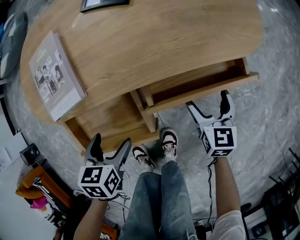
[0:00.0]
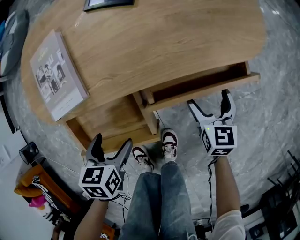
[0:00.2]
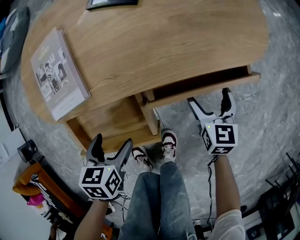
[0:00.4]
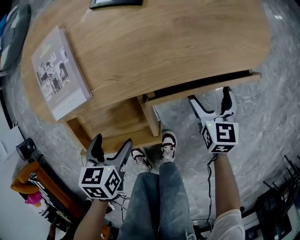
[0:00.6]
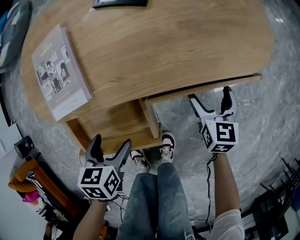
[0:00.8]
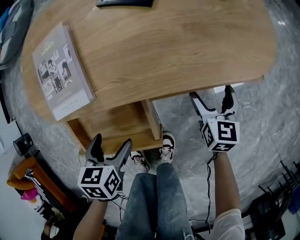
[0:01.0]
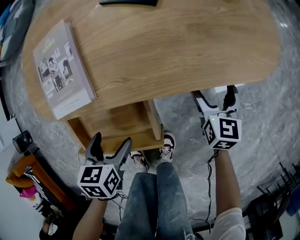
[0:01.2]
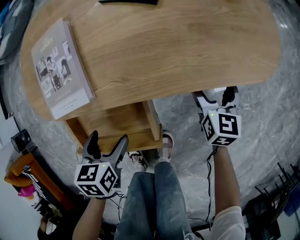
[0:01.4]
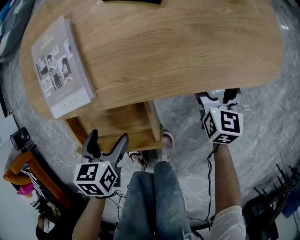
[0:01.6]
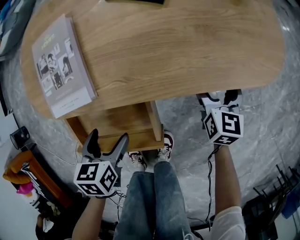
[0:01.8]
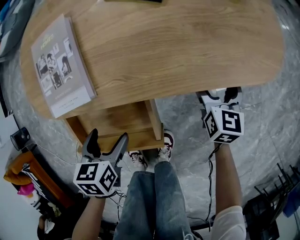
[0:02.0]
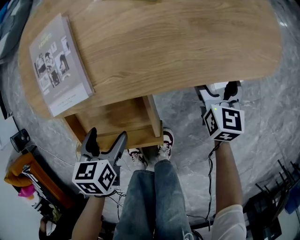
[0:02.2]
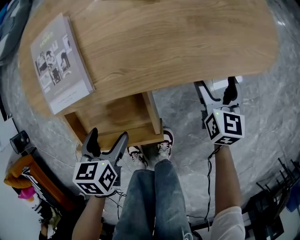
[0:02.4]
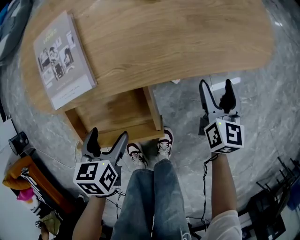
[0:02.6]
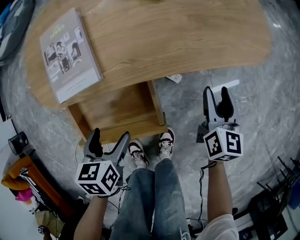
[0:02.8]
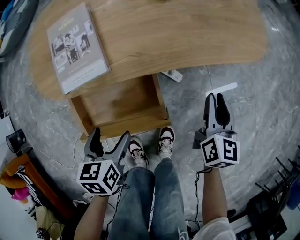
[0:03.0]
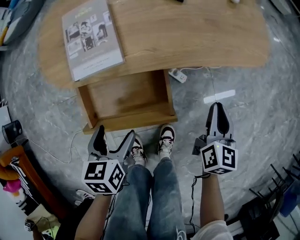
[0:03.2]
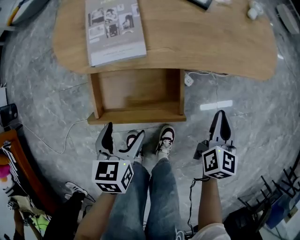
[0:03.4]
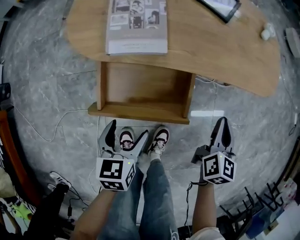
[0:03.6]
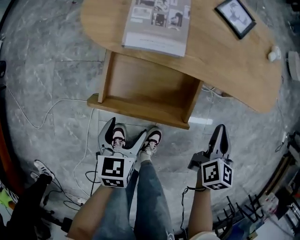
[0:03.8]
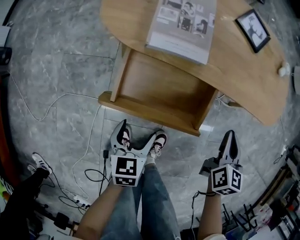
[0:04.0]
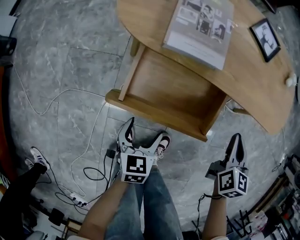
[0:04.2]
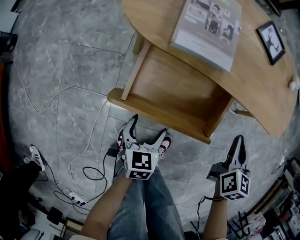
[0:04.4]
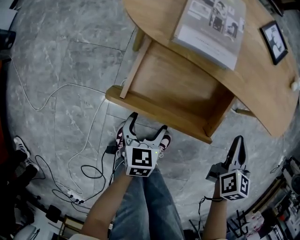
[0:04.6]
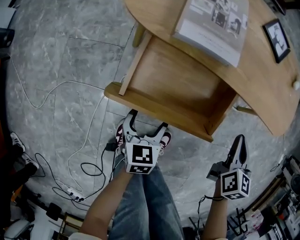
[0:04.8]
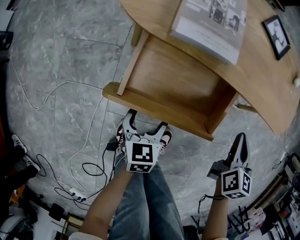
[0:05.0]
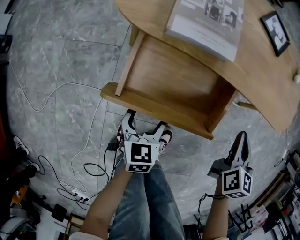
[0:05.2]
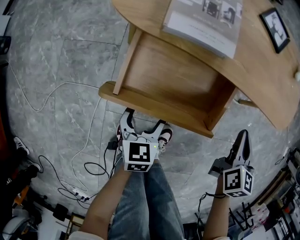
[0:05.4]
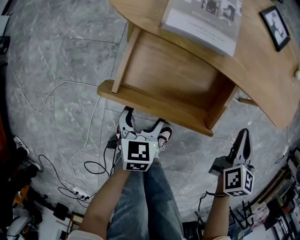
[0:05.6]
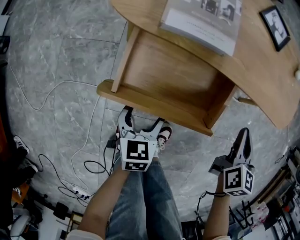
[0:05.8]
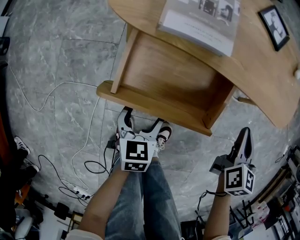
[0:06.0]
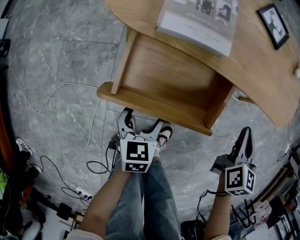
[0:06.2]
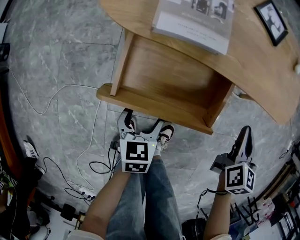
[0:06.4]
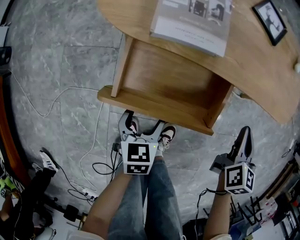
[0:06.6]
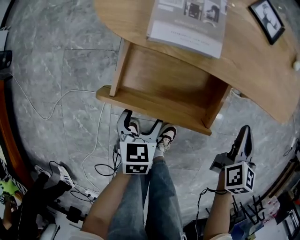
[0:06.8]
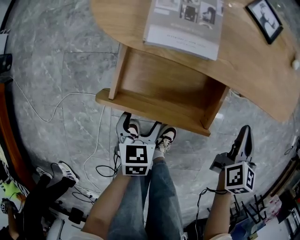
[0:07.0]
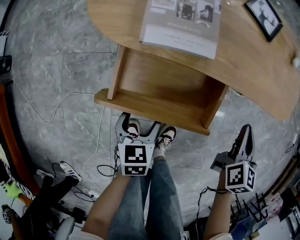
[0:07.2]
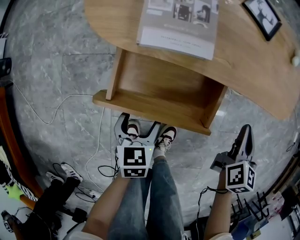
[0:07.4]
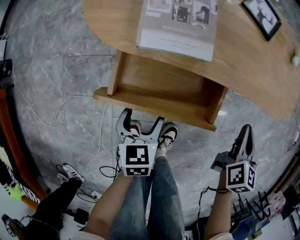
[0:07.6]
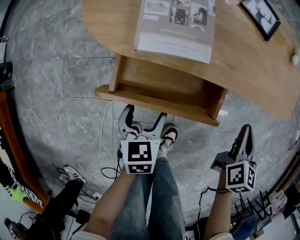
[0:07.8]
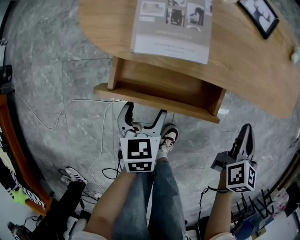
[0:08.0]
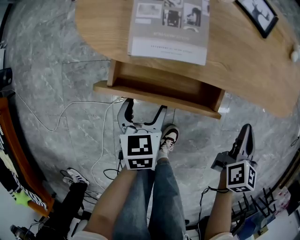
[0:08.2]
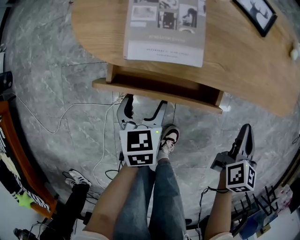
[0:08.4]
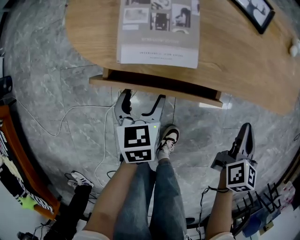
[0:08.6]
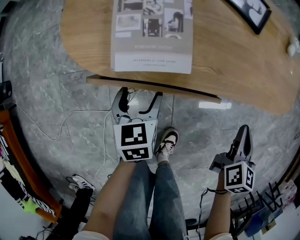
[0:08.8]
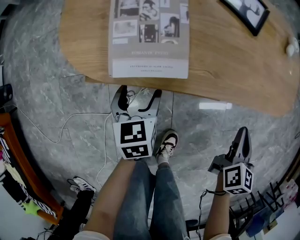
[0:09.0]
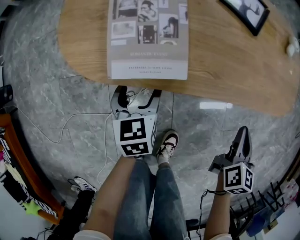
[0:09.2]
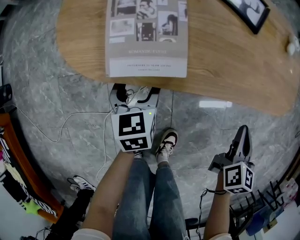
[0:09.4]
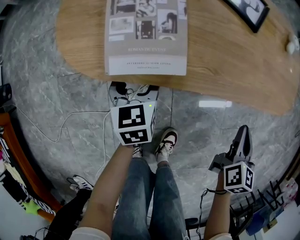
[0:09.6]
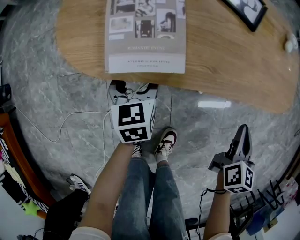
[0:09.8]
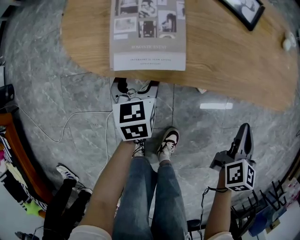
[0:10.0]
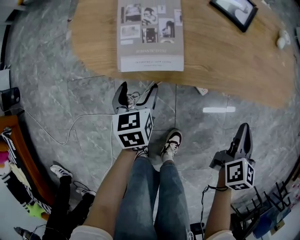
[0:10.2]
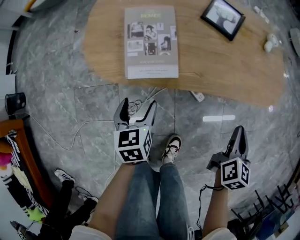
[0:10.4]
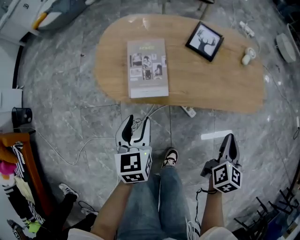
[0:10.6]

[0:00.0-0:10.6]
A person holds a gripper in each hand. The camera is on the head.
0:00.0 to 0:01.6: The right gripper is displaced forward by some 10 cm.
0:01.6 to 0:03.0: The left gripper is displaced backward by some 5 cm; the right gripper moves backward and upward, approximately 15 cm, and closes its fingers.
0:03.0 to 0:04.6: The right gripper heads to the left, covering approximately 10 cm, and rotates roughly 30 degrees. The left gripper heads downward and backward, covering some 15 cm.
0:04.6 to 0:06.0: The grippers stay close to where they were, moving slightly.
0:06.0 to 0:07.6: The left gripper shifts by some 5 cm.
0:07.6 to 0:09.0: The left gripper goes about 15 cm forward.
0:09.0 to 0:10.6: The grippers both shift upward by roughly 20 cm. The left gripper closes.

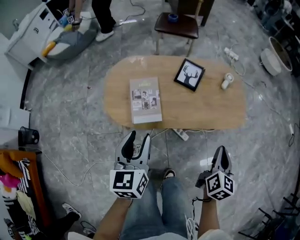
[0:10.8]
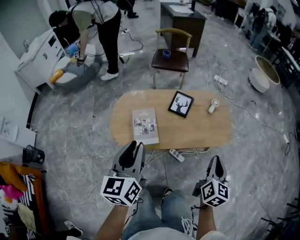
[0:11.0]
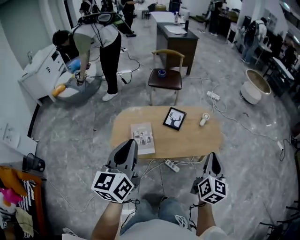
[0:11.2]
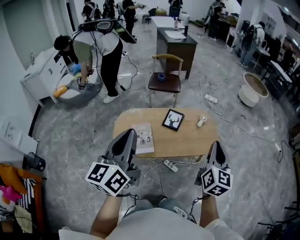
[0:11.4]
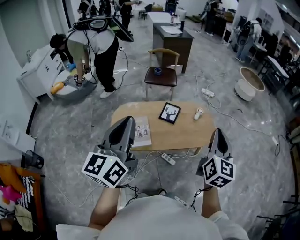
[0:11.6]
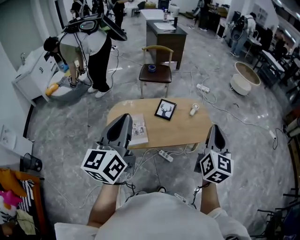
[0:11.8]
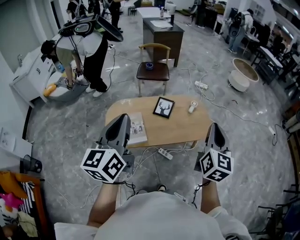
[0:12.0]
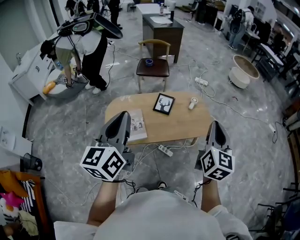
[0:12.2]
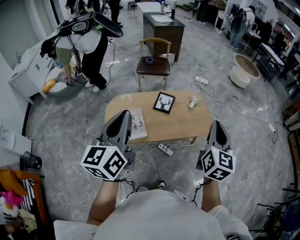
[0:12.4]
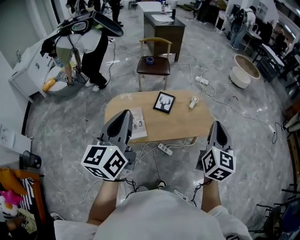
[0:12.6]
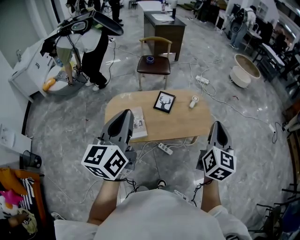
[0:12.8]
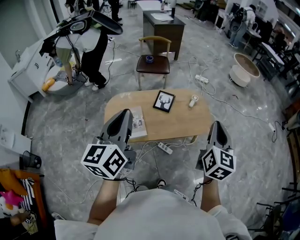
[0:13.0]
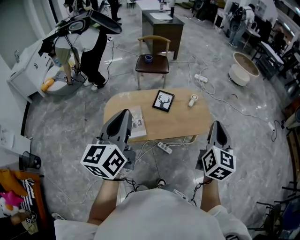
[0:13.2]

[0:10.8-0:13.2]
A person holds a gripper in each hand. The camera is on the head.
0:10.8 to 0:12.0: Both grippers move upward, about 35 cm. The left gripper swivels roughly 30 degrees, and closes; the right gripper changes its angle by some 20 degrees.
0:12.0 to 0:13.2: The grippers move only a little.

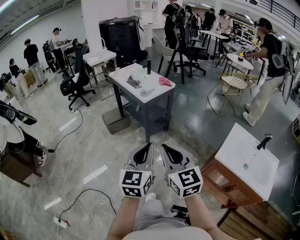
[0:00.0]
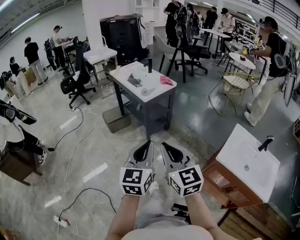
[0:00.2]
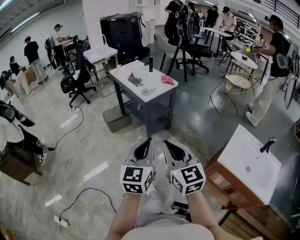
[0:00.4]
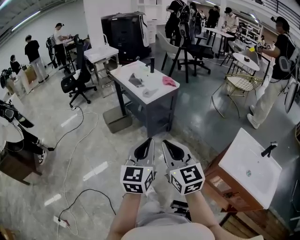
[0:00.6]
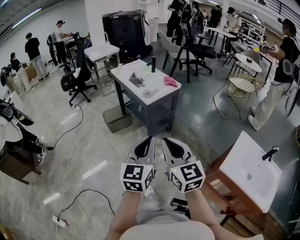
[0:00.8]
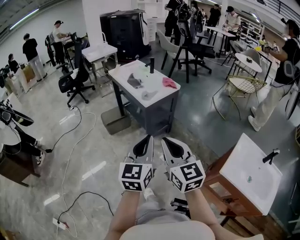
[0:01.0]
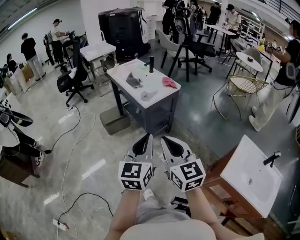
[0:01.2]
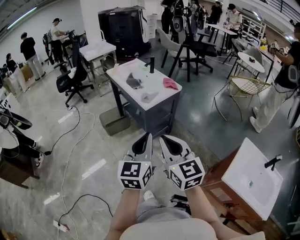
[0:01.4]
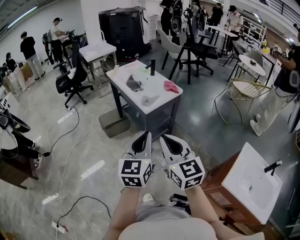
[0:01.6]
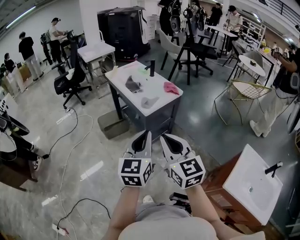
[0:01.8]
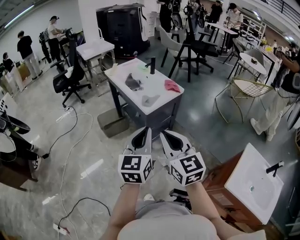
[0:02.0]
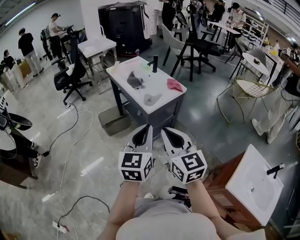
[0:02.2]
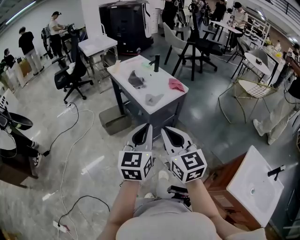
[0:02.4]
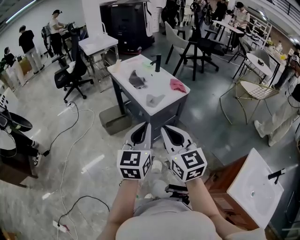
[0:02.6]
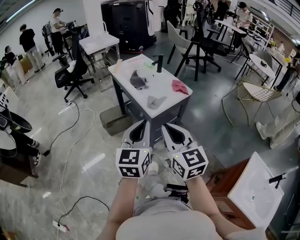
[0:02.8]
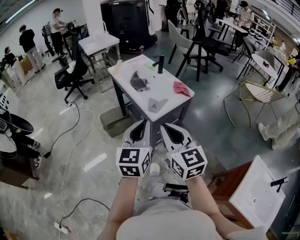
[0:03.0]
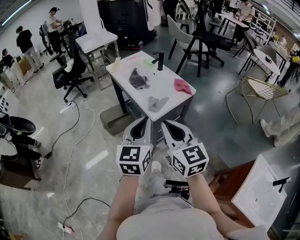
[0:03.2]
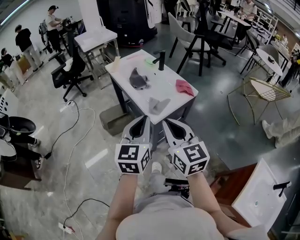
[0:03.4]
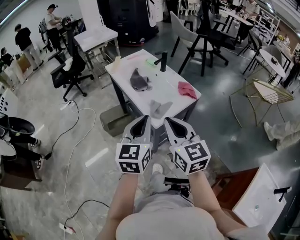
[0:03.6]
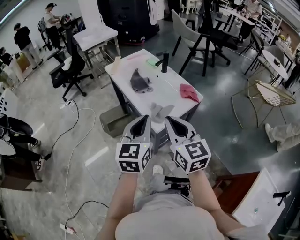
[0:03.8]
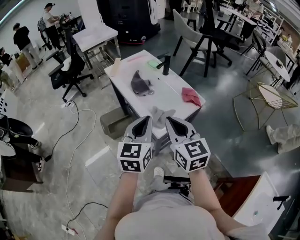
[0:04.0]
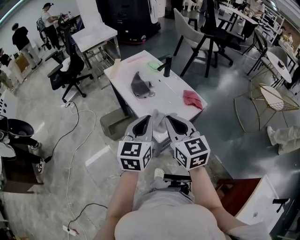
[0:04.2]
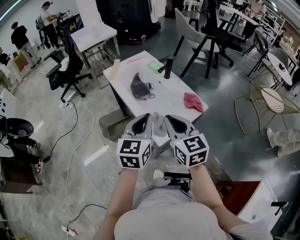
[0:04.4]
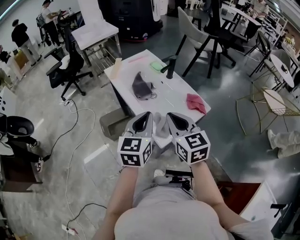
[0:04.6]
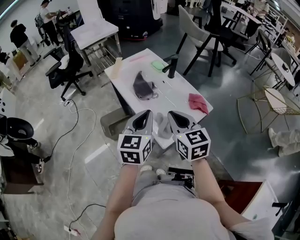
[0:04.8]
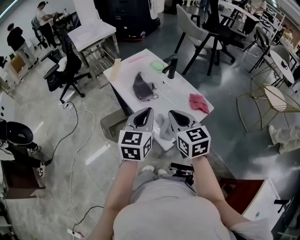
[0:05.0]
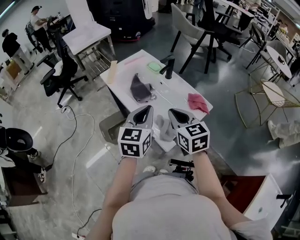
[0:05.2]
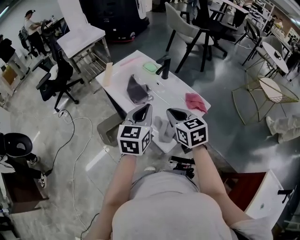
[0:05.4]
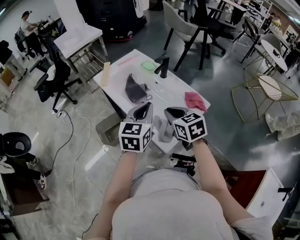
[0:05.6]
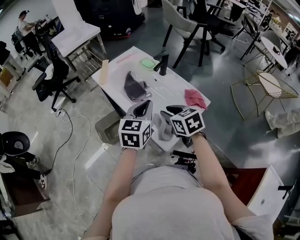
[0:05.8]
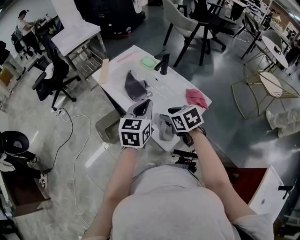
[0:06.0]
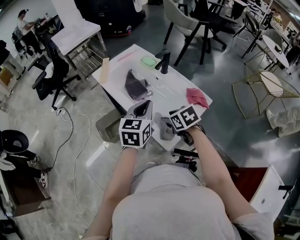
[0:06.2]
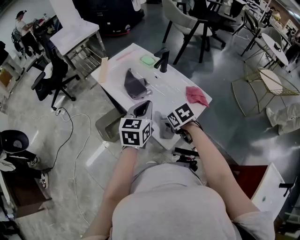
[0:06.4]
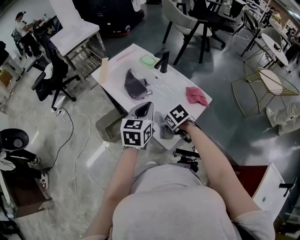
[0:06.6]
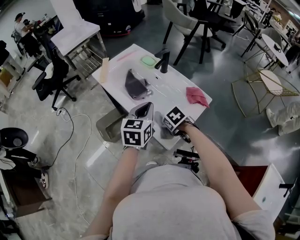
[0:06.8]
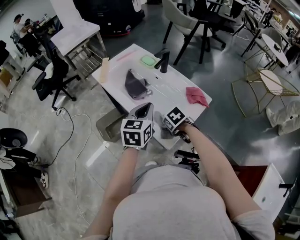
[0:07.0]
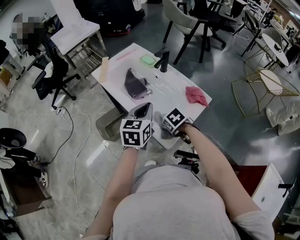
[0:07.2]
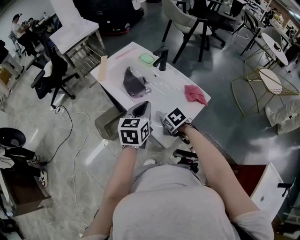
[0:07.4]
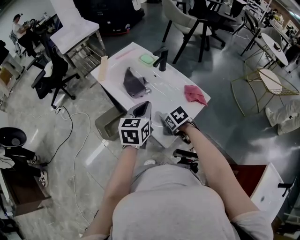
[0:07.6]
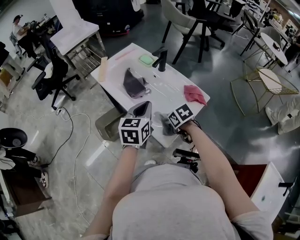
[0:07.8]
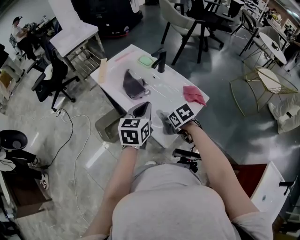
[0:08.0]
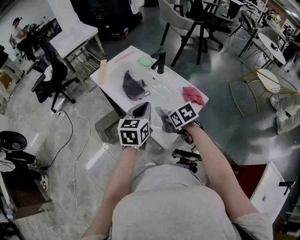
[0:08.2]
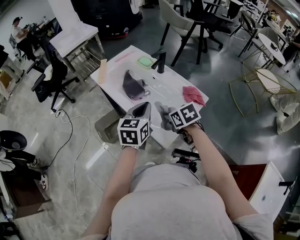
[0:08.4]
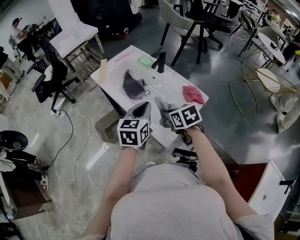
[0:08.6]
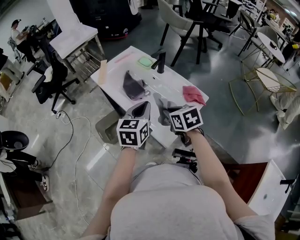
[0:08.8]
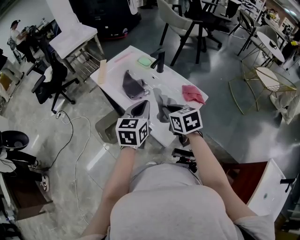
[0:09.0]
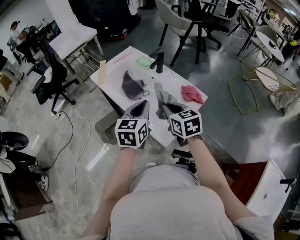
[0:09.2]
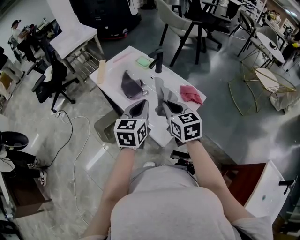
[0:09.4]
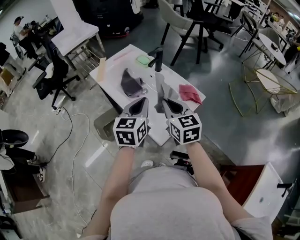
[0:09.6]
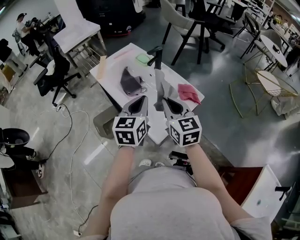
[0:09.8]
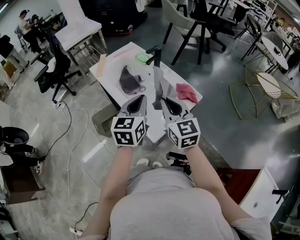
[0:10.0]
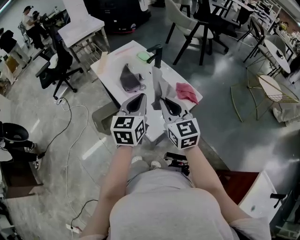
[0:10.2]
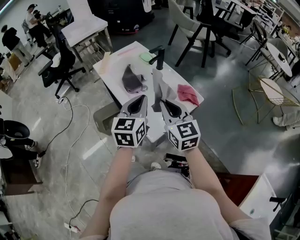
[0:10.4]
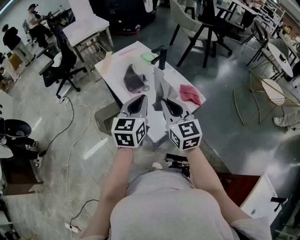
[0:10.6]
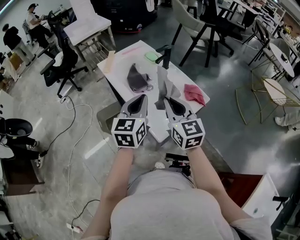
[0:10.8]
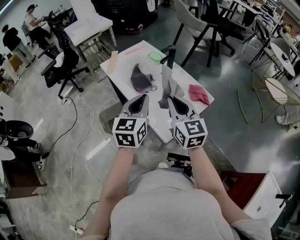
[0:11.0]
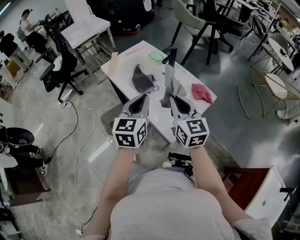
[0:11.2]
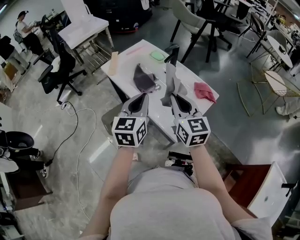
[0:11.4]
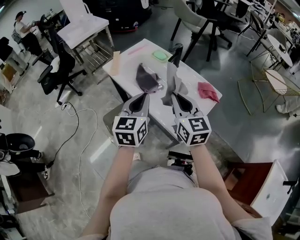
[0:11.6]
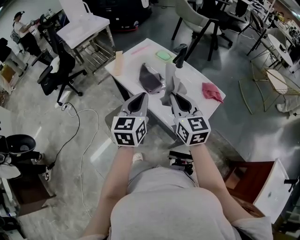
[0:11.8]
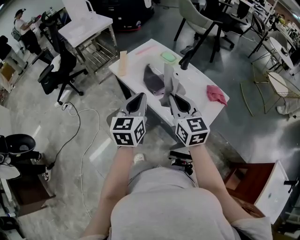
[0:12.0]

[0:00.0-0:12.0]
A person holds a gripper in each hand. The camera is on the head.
0:00.0 to 0:01.6: Both grippers move forward, roughly 25 cm.
0:01.6 to 0:03.0: The grippers both shift forward by some 15 cm.
0:03.0 to 0:04.4: Both grippers travel together forward, about 25 cm.
0:04.4 to 0:06.0: The left gripper heads forward and downward, covering some 15 cm, while the right gripper travels downward and forward by approximately 20 cm, tips its fingers downward by roughly 30 degrees, and opens up.
0:06.0 to 0:07.6: The right gripper heads downward, covering approximately 10 cm, swivels roughly 20 degrees, and closes up.
0:07.6 to 0:09.0: The right gripper goes some 15 cm upward, and rotates some 30 degrees.
0:09.0 to 0:10.4: The left gripper shifts by about 5 cm; the right gripper heads upward, covering about 10 cm, and turns by approximately 30 degrees.
0:10.4 to 0:12.0: The left gripper heads to the left, covering about 20 cm; the right gripper goes roughly 15 cm to the left and forward.
